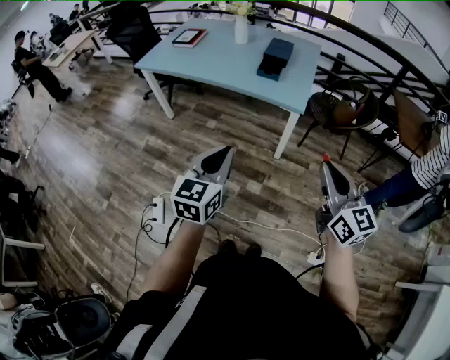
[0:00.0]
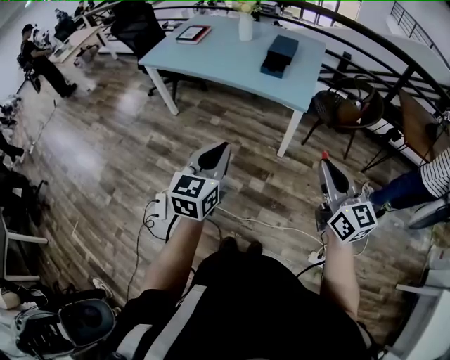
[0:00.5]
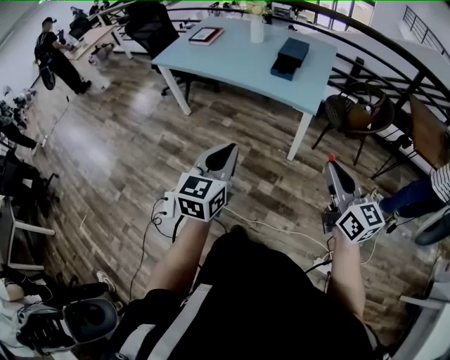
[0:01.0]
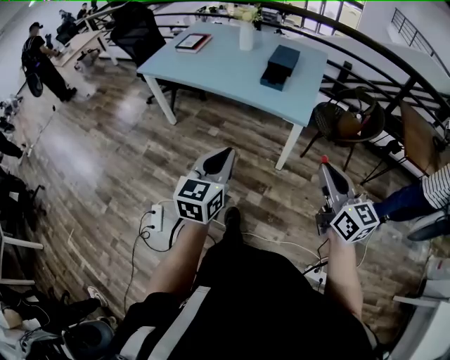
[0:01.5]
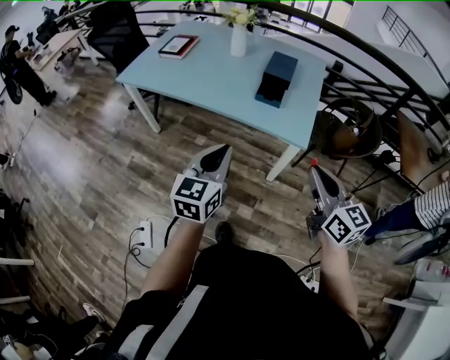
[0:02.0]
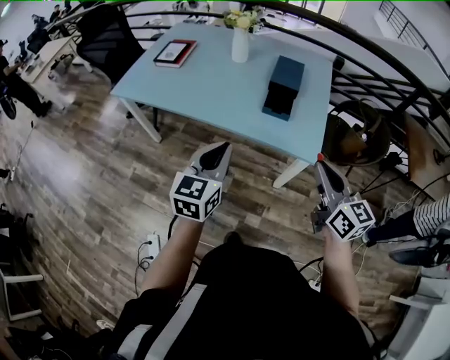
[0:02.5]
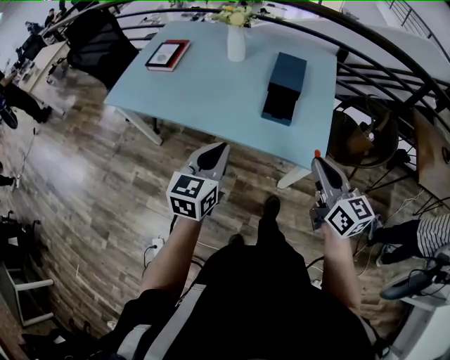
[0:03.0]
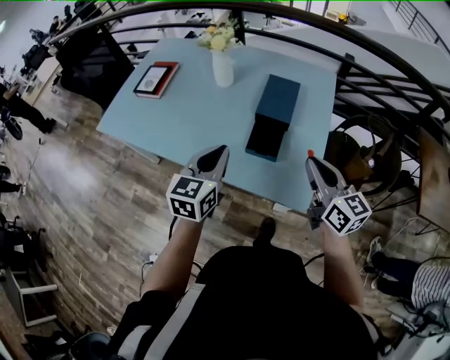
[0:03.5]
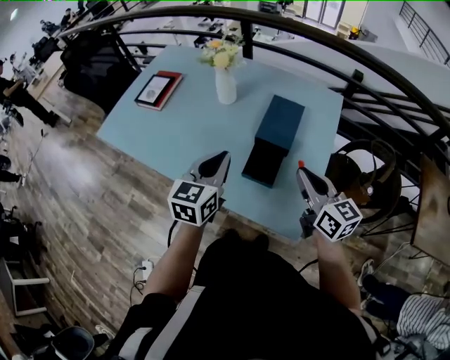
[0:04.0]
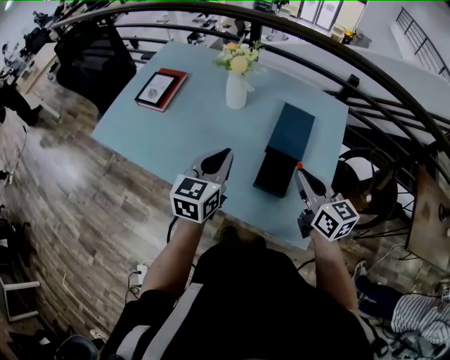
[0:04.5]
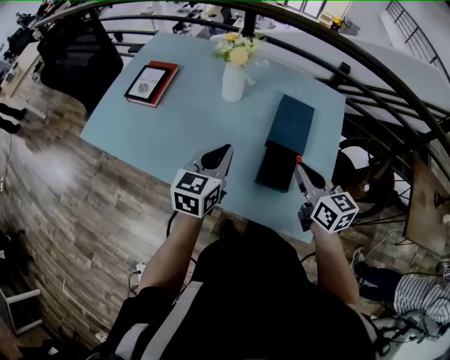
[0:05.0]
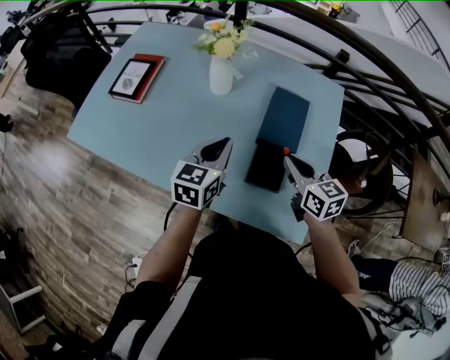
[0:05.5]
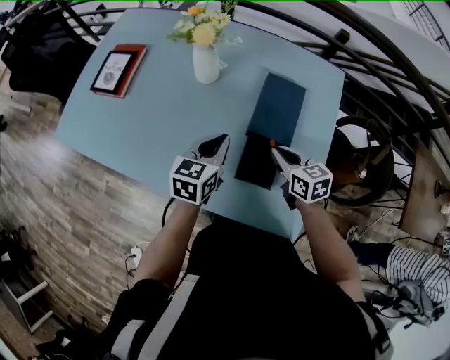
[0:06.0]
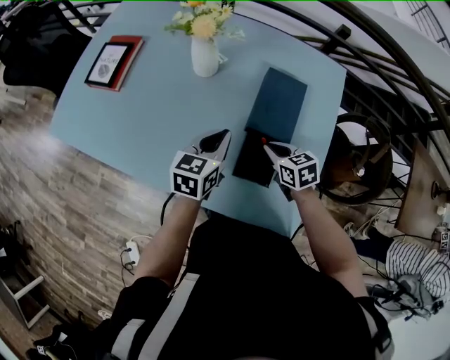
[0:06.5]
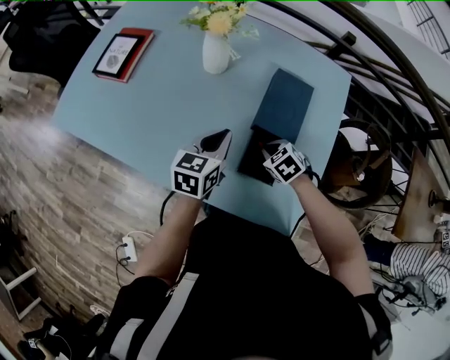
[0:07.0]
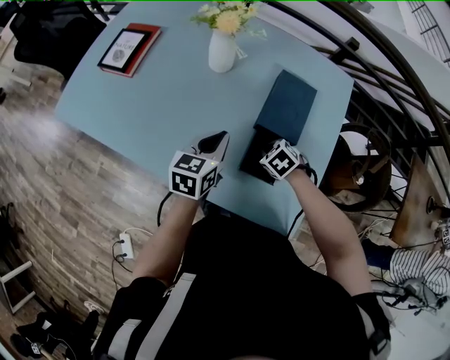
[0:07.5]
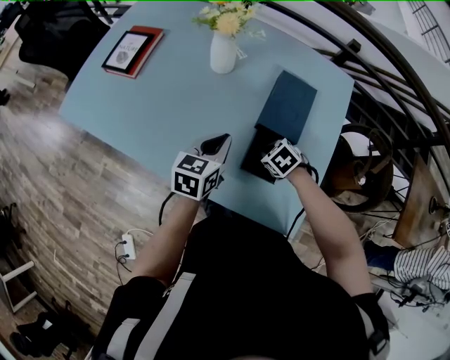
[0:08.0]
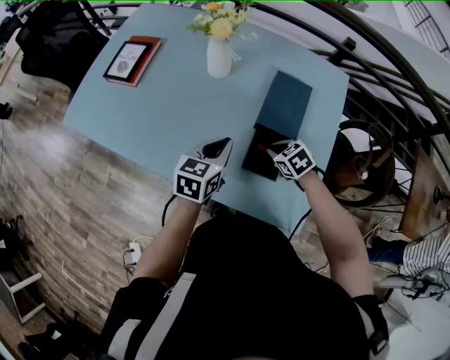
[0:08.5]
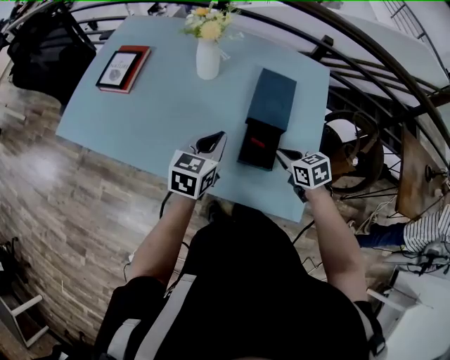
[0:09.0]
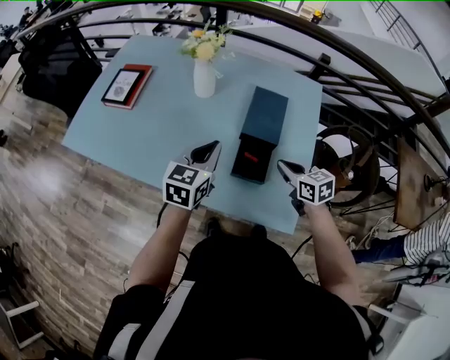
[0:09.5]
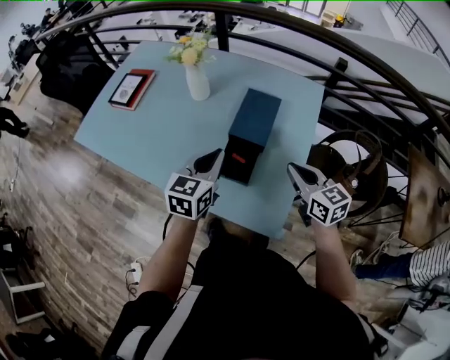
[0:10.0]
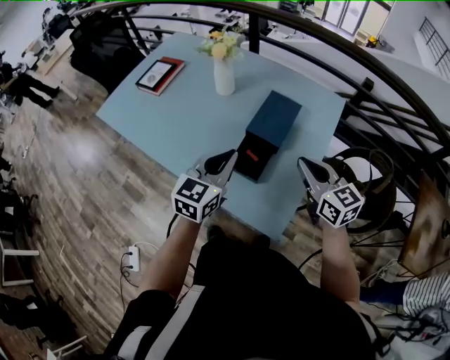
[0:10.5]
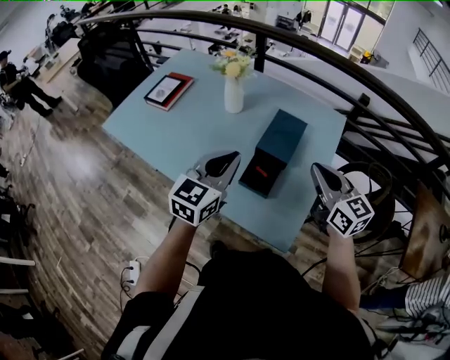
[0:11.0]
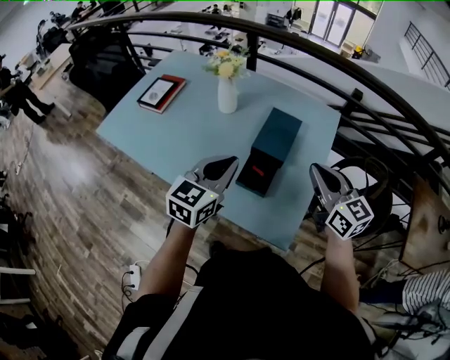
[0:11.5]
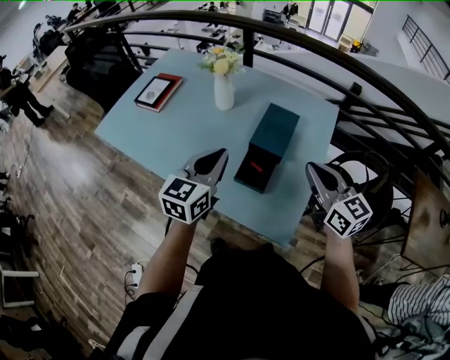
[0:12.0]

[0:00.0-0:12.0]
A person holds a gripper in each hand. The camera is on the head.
0:00.0 to 0:02.0: Both grippers move forward, approximately 25 cm.
0:02.0 to 0:04.0: Both grippers are carried forward, roughly 40 cm.
0:04.0 to 0:06.0: The two grippers go some 20 cm downward and forward. The right gripper rotates some 30 degrees.
0:06.0 to 0:08.0: The right gripper moves downward, about 10 cm, and points its fingers approximately 40 degrees further downward.
0:08.0 to 0:10.0: The right gripper is displaced upward and to the right by roughly 30 cm, and points its fingers about 50 degrees further upward. The left gripper moves upward, to the right and backward, approximately 15 cm.
0:10.0 to 0:12.0: The left gripper travels upward and to the left by about 10 cm. The right gripper is displaced upward by roughly 10 cm.

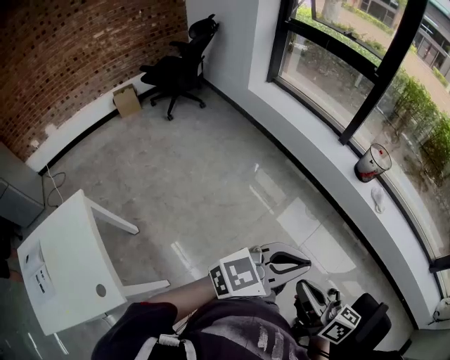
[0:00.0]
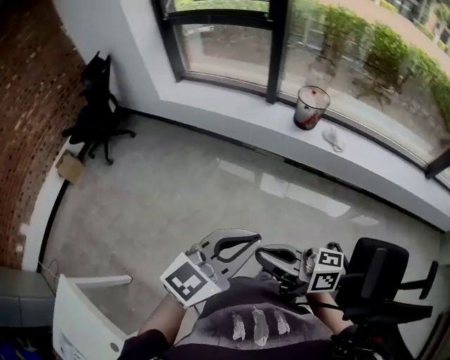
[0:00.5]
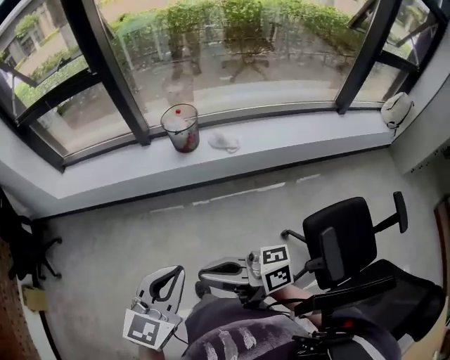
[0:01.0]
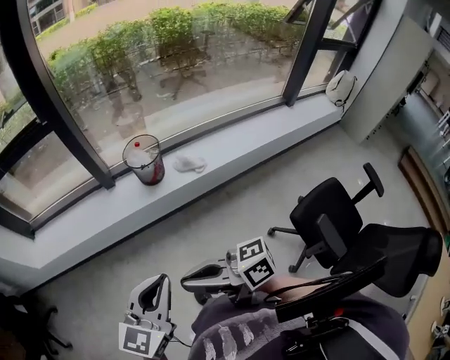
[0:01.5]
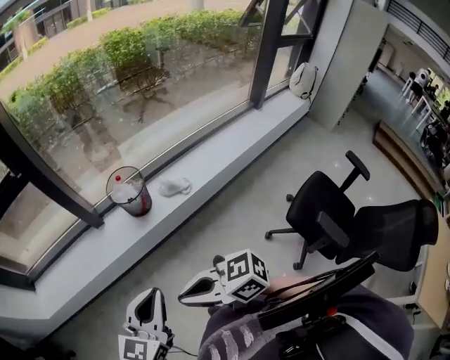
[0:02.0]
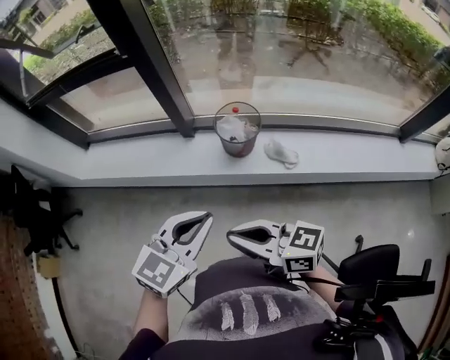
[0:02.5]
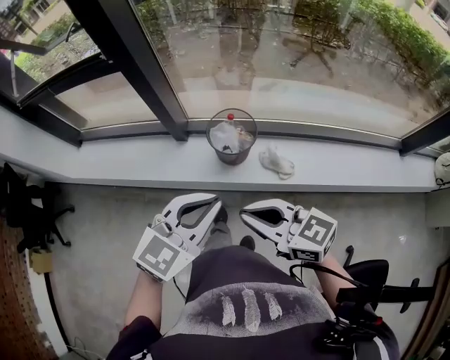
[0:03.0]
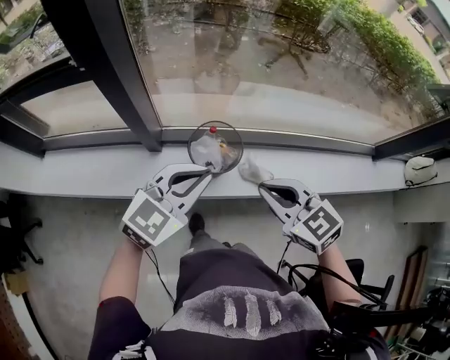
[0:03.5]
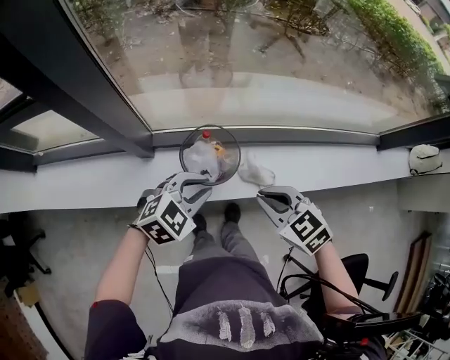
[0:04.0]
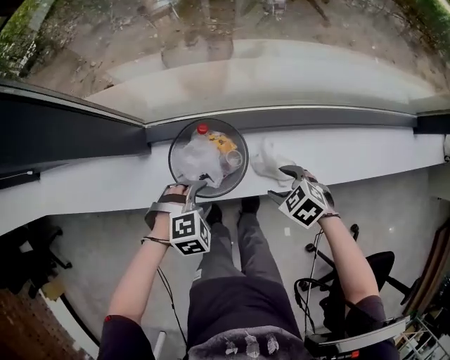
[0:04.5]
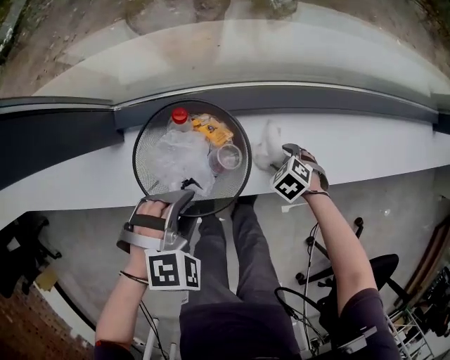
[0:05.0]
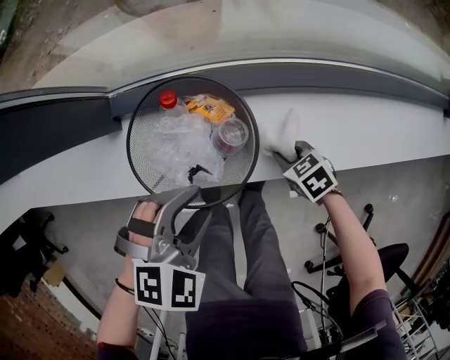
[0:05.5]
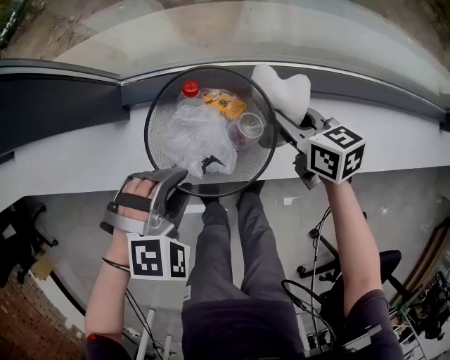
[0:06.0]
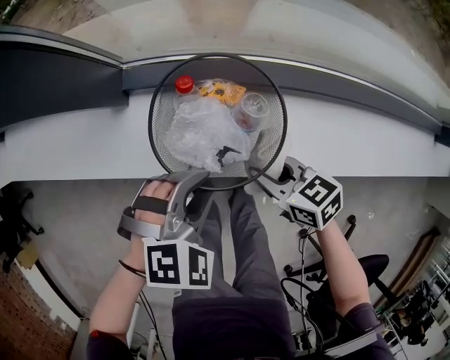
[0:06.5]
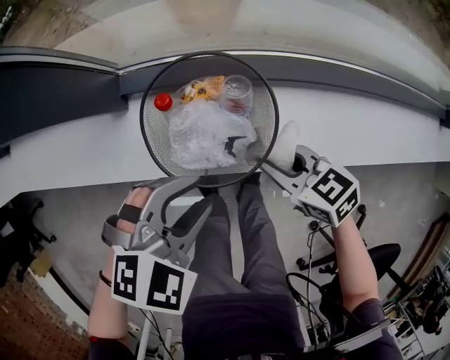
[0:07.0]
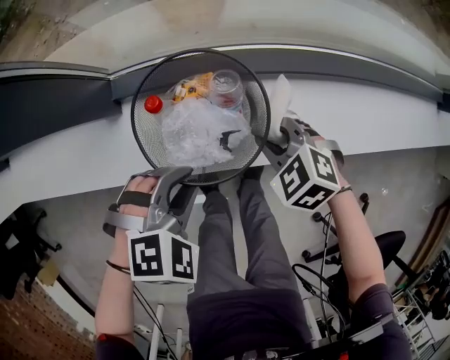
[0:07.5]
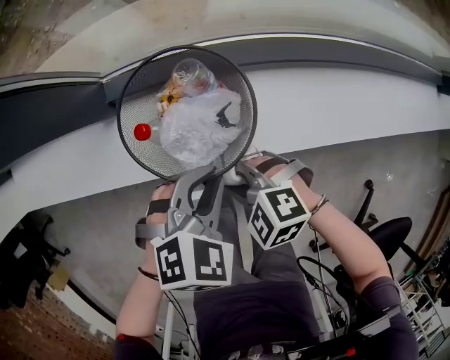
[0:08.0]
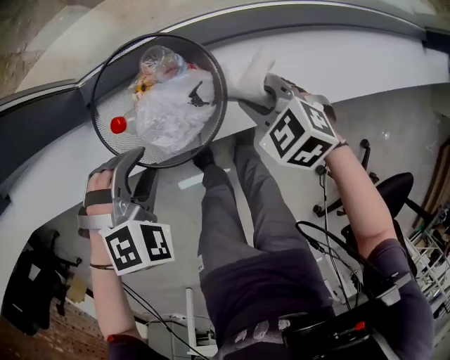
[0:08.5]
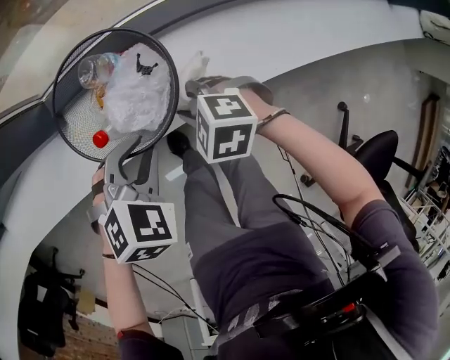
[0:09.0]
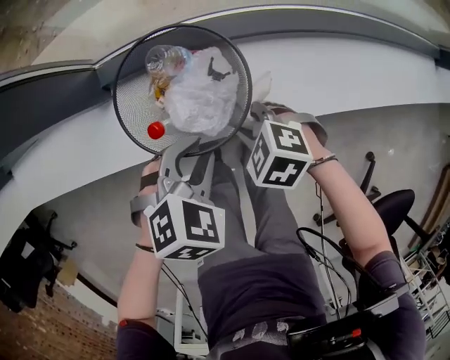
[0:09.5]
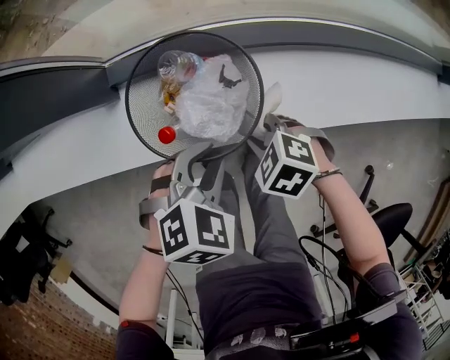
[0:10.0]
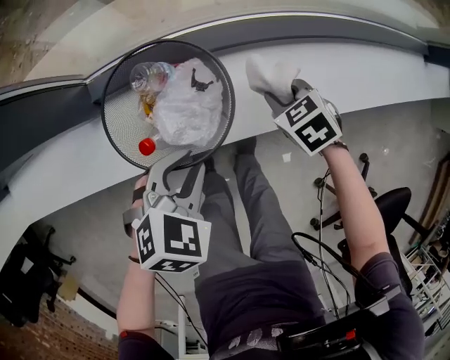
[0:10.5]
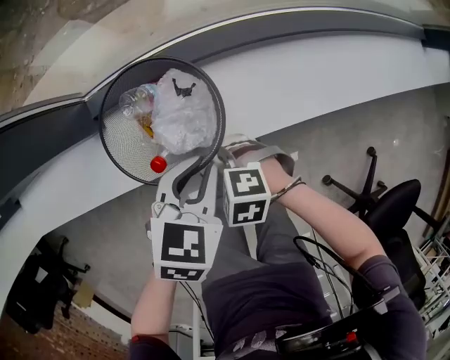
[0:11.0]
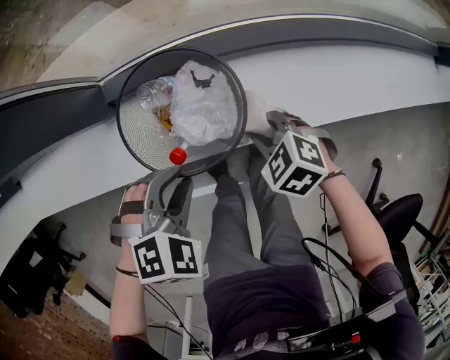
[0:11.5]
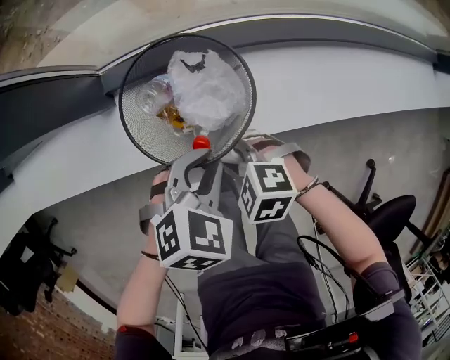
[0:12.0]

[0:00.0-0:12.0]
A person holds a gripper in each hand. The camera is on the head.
0:00.0 to 0:02.0: Both grippers are carried roughly 50 cm. The right gripper changes its angle by some 20 degrees, while the left gripper turns by some 30 degrees.
0:02.0 to 0:04.0: The pair of grippers is taken forward, approximately 40 cm. The left gripper swivels about 30 degrees. The right gripper points its fingers approximately 40 degrees further downward.
0:04.0 to 0:06.0: The two grippers go approximately 25 cm downward. The right gripper swivels some 30 degrees, and opens, then closes once more; the left gripper rotates about 30 degrees, and opens.
0:06.0 to 0:08.0: The left gripper changes place by approximately 5 cm, turns by some 30 degrees, and closes, while the right gripper moves about 25 cm, and rolls counterclockwise, seen from behind, by some 50 degrees.
0:08.0 to 0:10.0: The right gripper changes its angle by approximately 30 degrees.

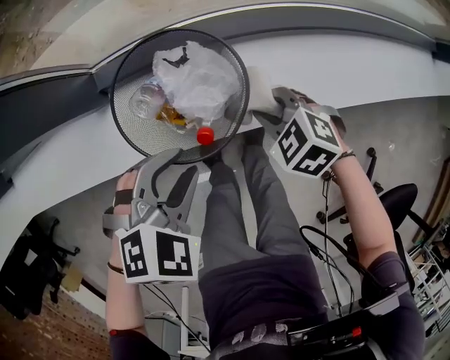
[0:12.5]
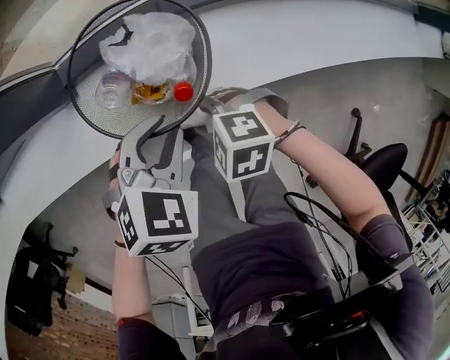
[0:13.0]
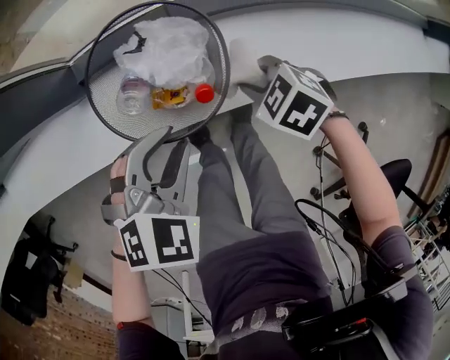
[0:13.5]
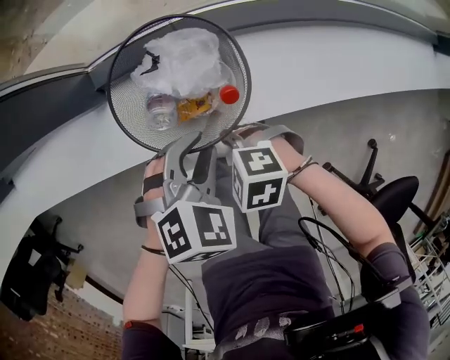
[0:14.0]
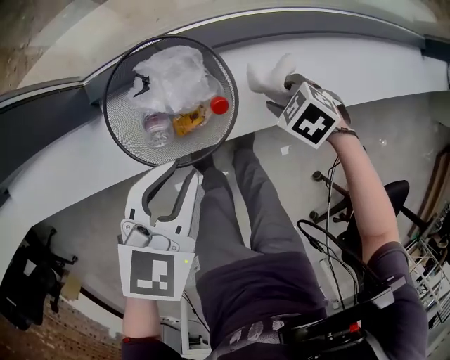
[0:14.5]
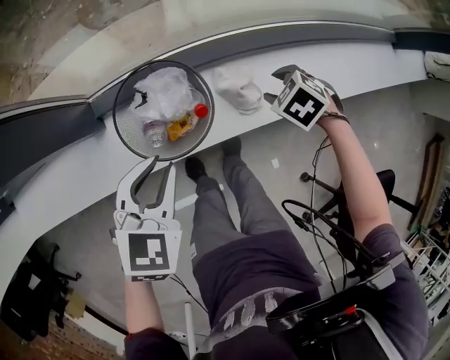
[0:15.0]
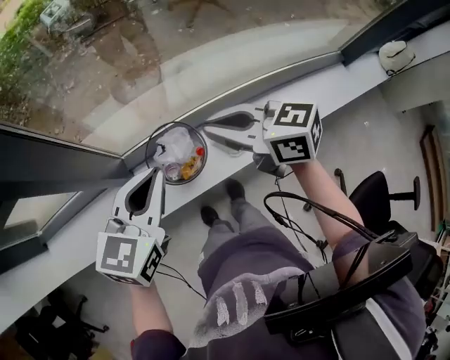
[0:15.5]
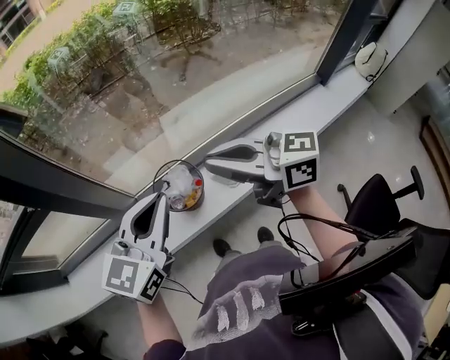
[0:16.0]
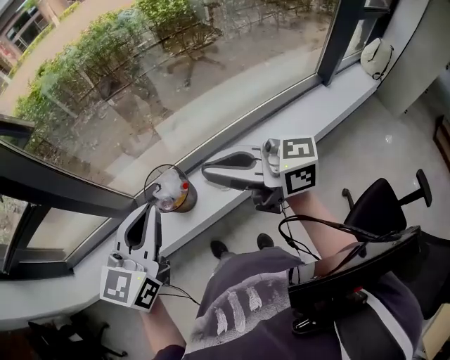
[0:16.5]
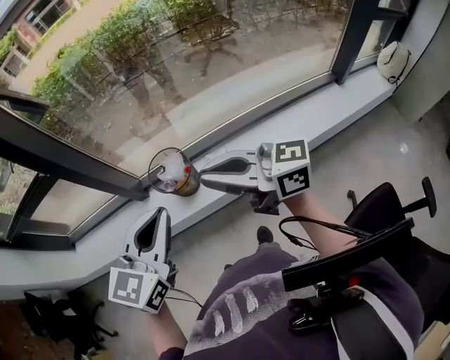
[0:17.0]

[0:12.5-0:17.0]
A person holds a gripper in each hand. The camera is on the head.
0:12.5 to 0:14.5: The left gripper swivels about 30 degrees.
0:14.5 to 0:17.0: The left gripper heads upward, covering approximately 35 cm, tips its fingers upward by about 30 degrees, and closes, while the right gripper heads upward, covering about 60 cm, tips its fingers upward by about 90 degrees, and closes its fingers.
